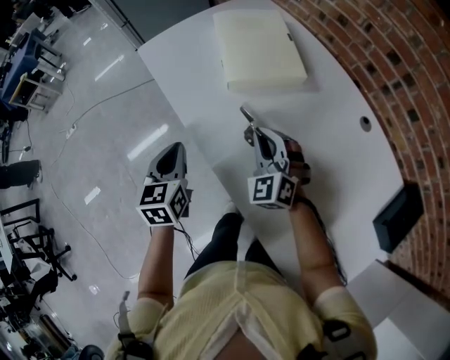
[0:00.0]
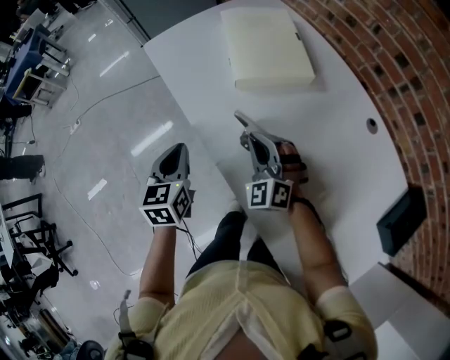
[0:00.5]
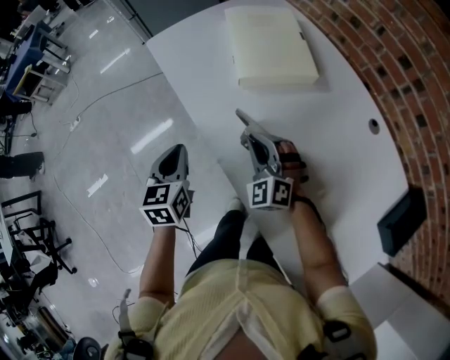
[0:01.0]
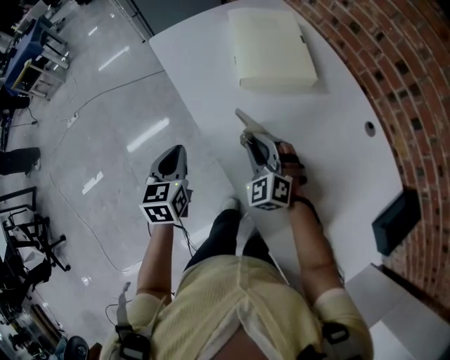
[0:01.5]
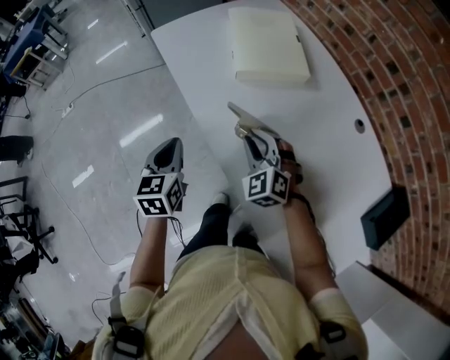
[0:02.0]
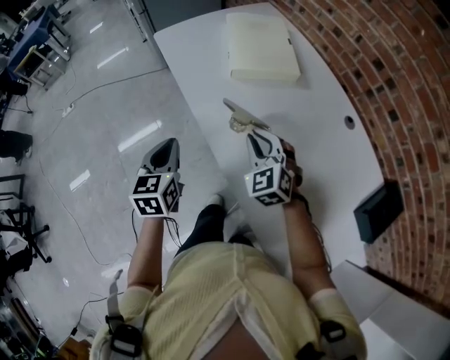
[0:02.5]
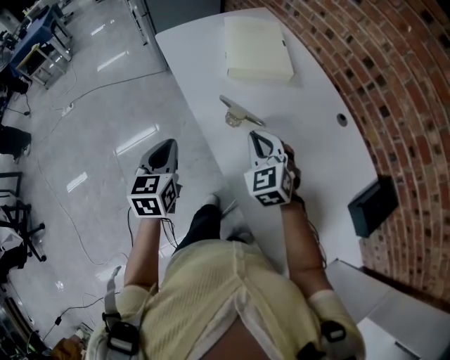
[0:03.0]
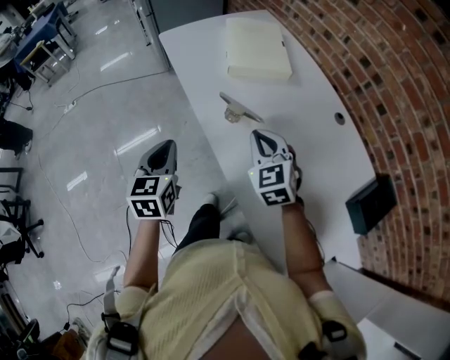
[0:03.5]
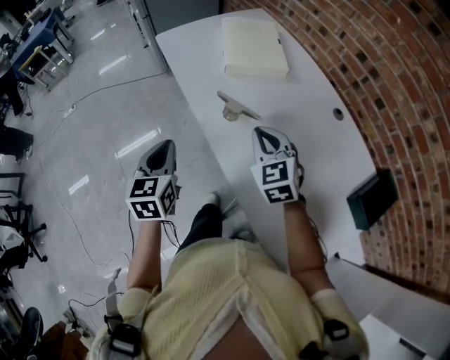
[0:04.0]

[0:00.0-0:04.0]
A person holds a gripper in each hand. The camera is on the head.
0:00.0 to 0:02.0: The right gripper heads backward, covering roughly 5 cm. The left gripper moves some 5 cm.
0:02.0 to 0:04.0: The right gripper heads upward, backward and to the right, covering approximately 15 cm, and turns by about 20 degrees; the left gripper heads backward and upward, covering roughly 15 cm.

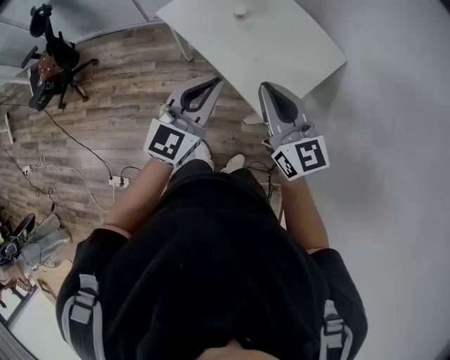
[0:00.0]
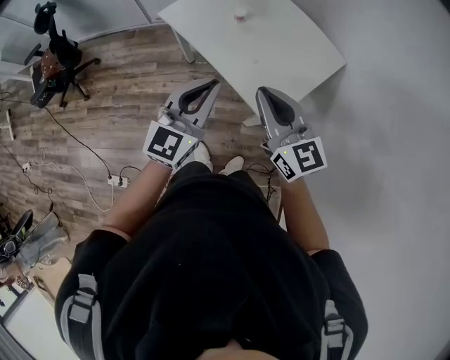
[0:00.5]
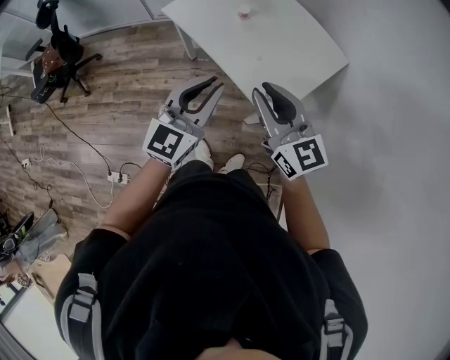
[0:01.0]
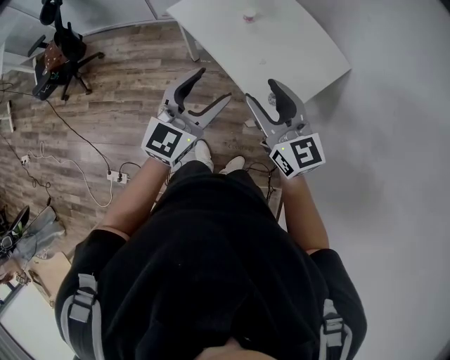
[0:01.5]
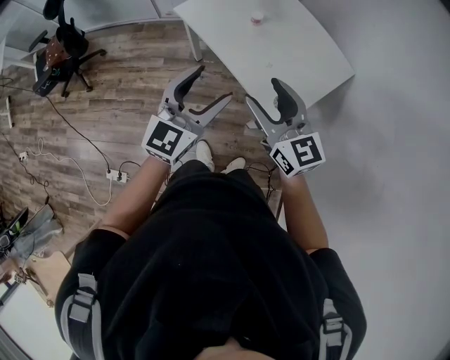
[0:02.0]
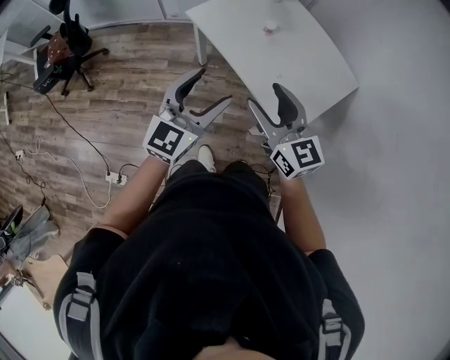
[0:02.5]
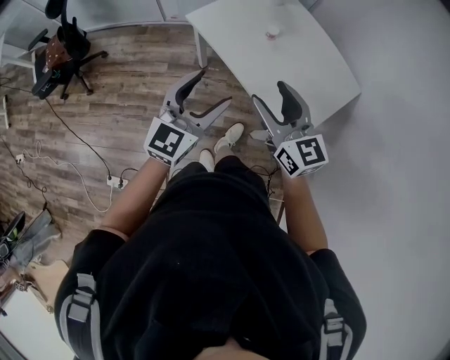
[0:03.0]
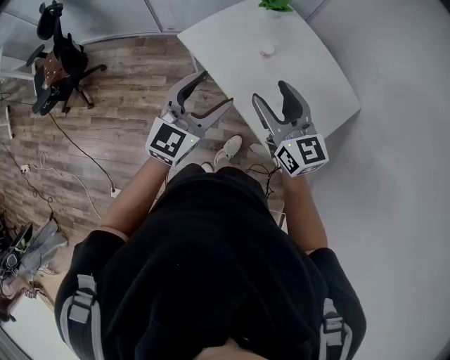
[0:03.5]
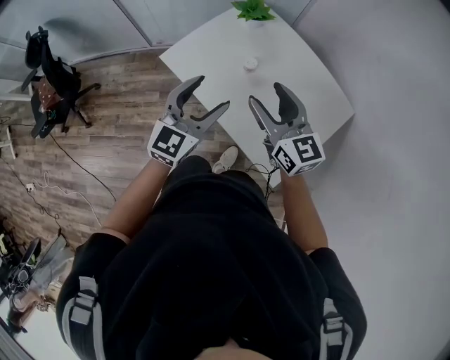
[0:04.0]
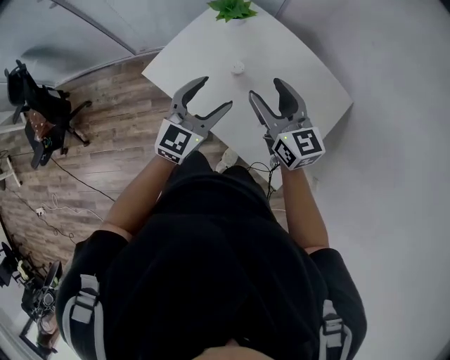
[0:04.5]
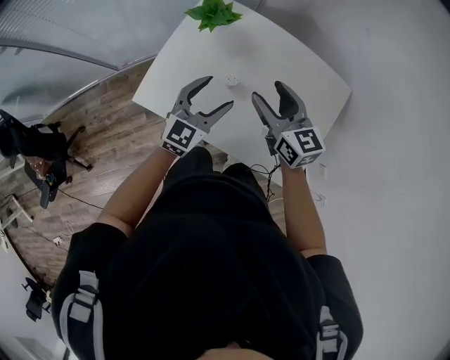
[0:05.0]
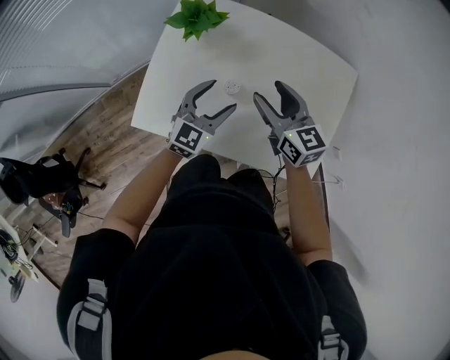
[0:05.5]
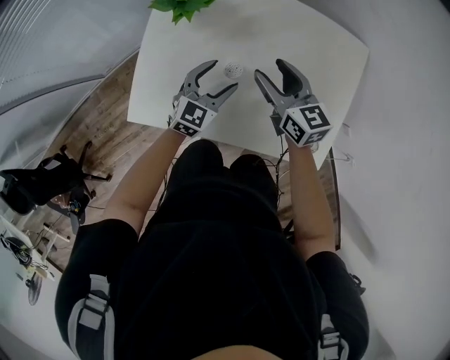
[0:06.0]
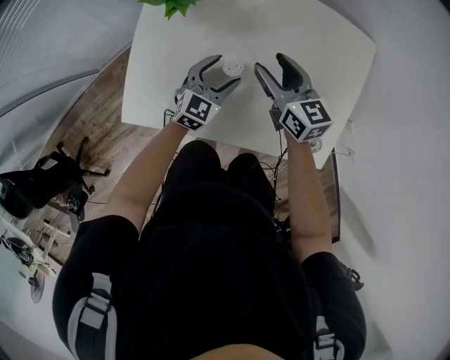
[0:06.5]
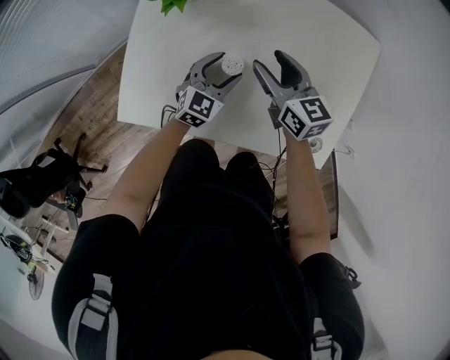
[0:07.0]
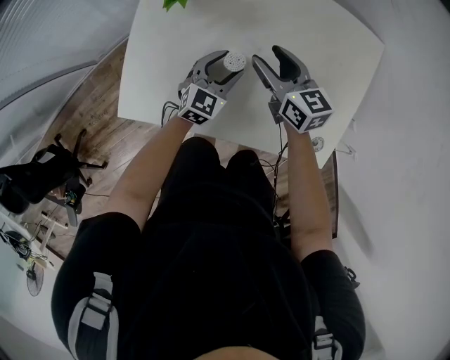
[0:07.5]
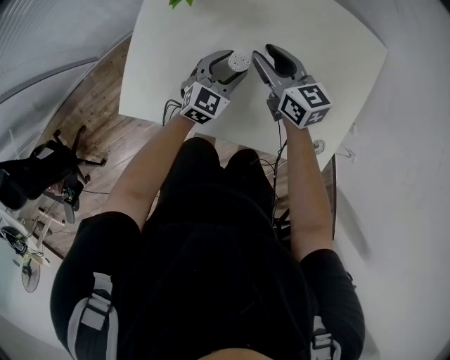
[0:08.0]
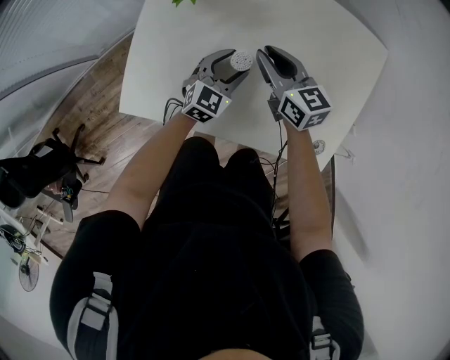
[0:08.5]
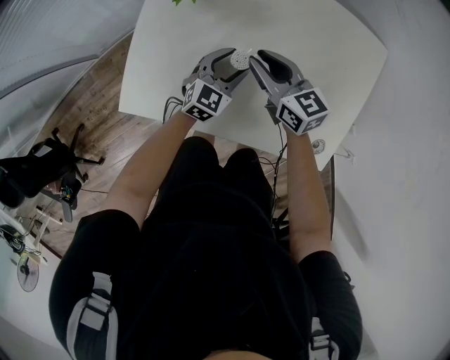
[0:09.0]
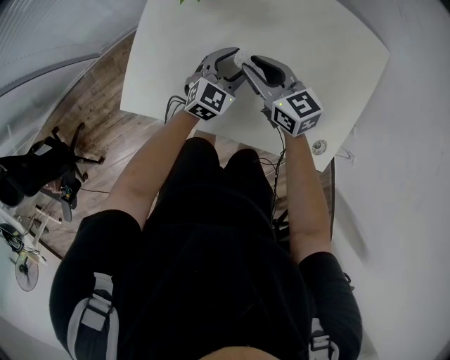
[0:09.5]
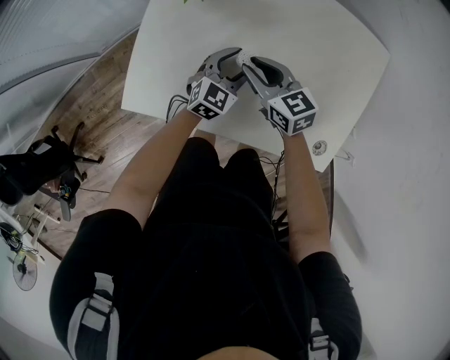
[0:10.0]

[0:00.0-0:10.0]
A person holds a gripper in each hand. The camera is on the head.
0:00.0 to 0:02.0: Both grippers travel together to the left, about 5 cm. The left gripper opens its fingers. The right gripper opens its fingers.
0:02.0 to 0:04.0: The grippers both shift forward by approximately 25 cm.
0:04.0 to 0:06.0: The left gripper goes roughly 25 cm downward, and turns by roughly 40 degrees, while the right gripper shifts by some 30 cm, and changes its angle by approximately 40 degrees.
0:06.0 to 0:08.0: The grippers both shift downward by roughly 10 cm. The right gripper closes its fingers.
0:08.0 to 0:10.0: The right gripper changes place by about 5 cm.

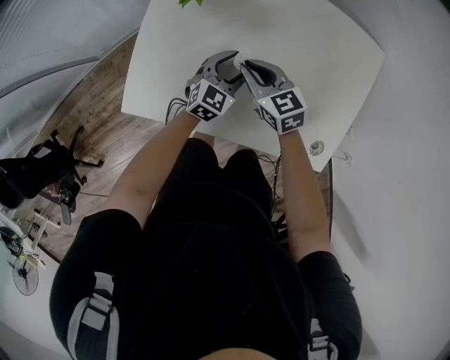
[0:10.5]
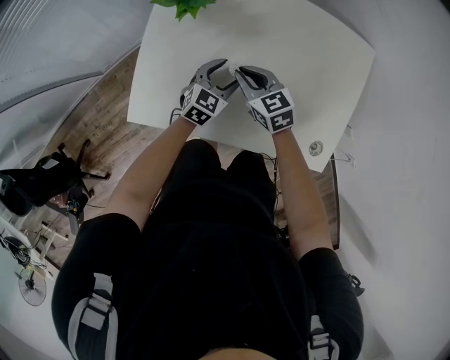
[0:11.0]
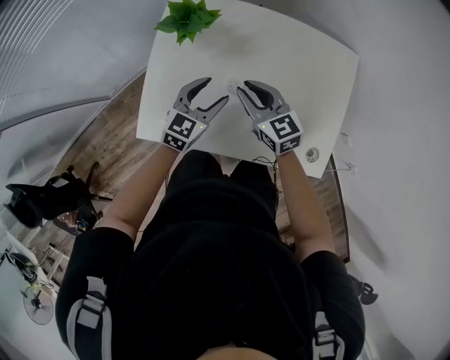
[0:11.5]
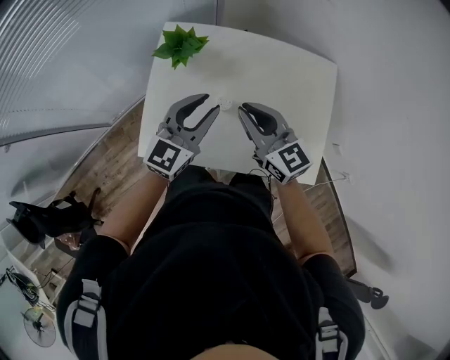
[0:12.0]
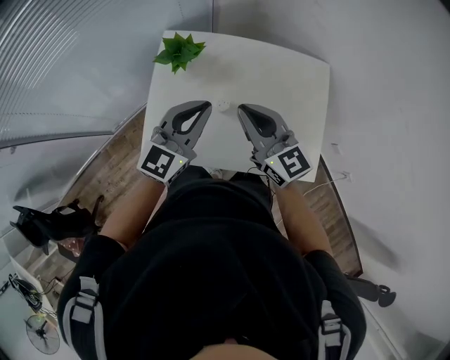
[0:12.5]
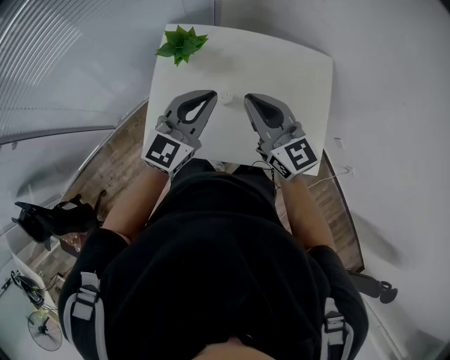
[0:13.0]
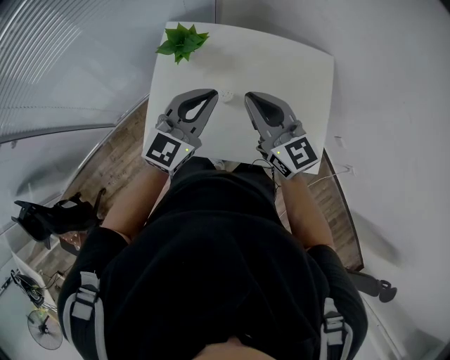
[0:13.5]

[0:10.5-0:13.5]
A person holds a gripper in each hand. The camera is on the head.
0:10.5 to 0:12.0: Both grippers travel together upward, about 25 cm. The right gripper changes its angle by roughly 30 degrees; the left gripper turns by approximately 20 degrees, and closes up.
0:12.0 to 0:13.5: The grippers both shift upward by roughly 5 cm. The left gripper closes its fingers.

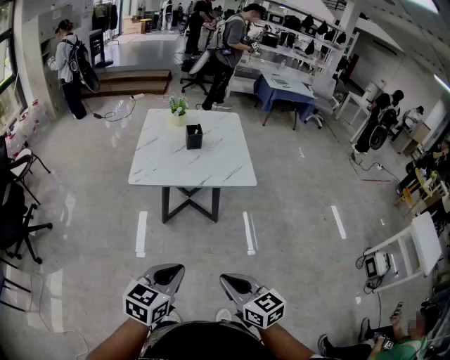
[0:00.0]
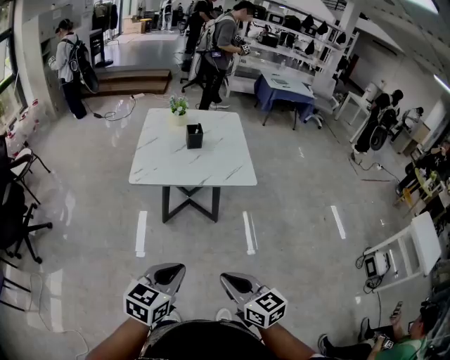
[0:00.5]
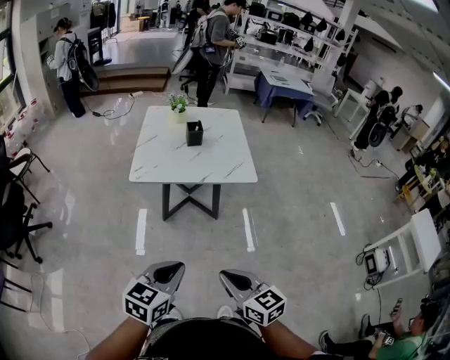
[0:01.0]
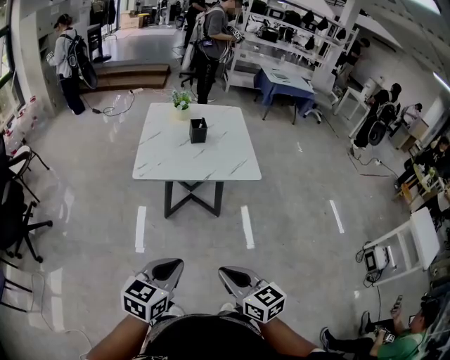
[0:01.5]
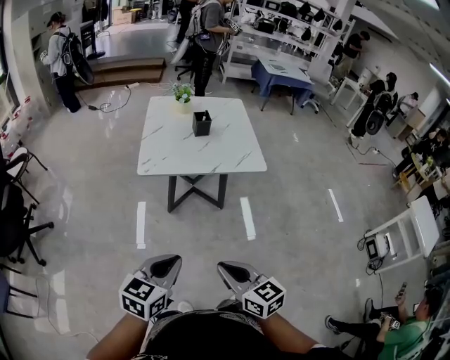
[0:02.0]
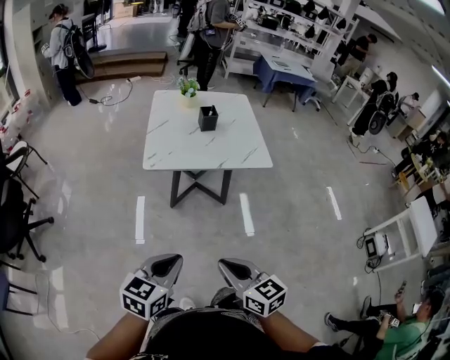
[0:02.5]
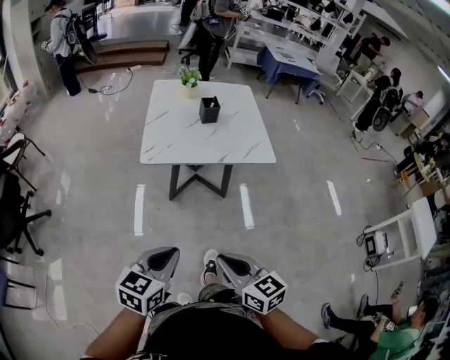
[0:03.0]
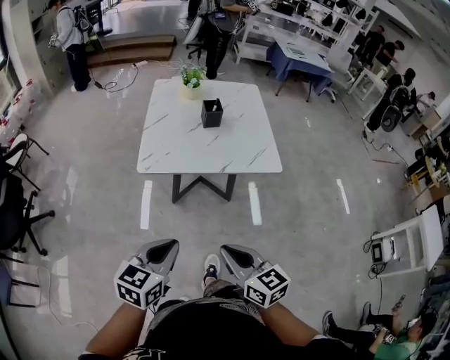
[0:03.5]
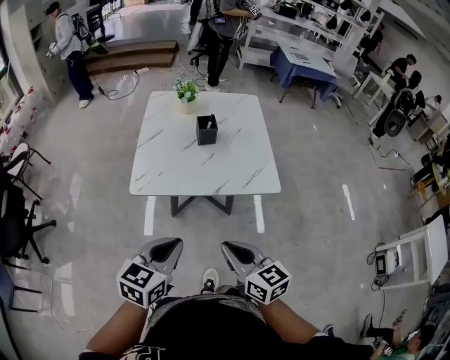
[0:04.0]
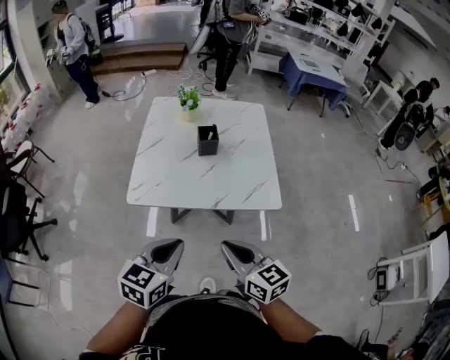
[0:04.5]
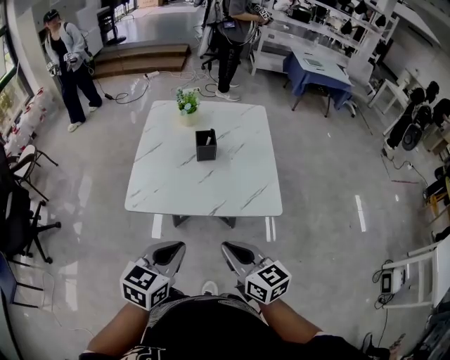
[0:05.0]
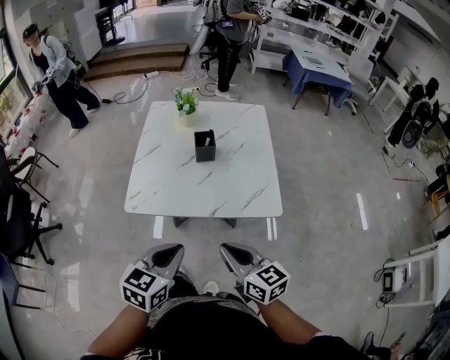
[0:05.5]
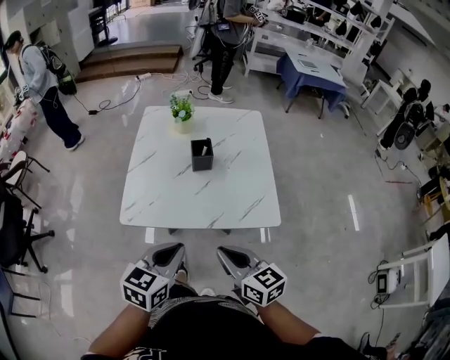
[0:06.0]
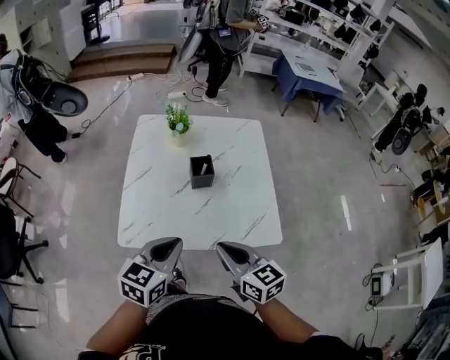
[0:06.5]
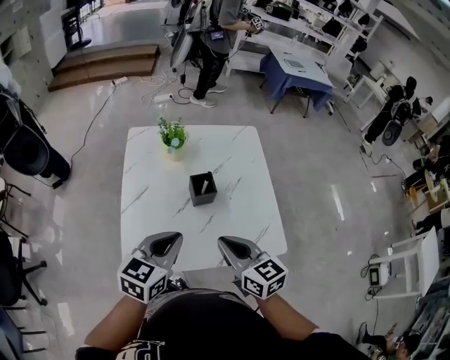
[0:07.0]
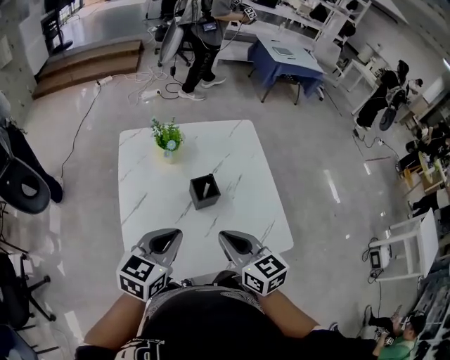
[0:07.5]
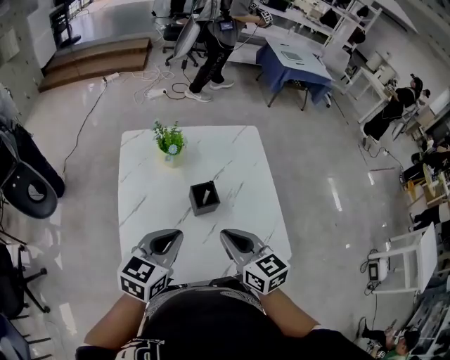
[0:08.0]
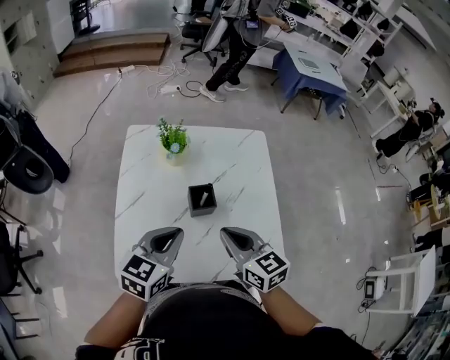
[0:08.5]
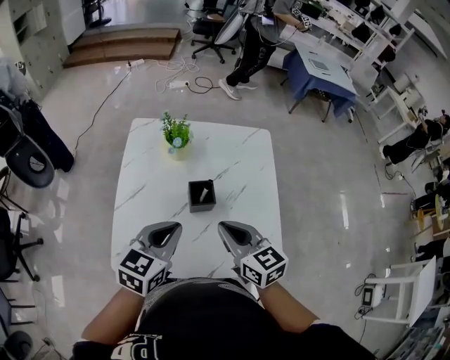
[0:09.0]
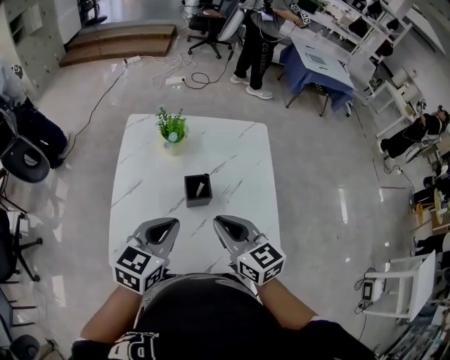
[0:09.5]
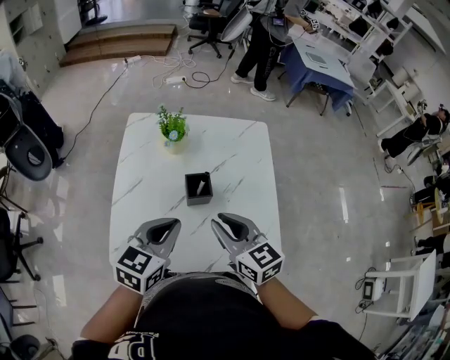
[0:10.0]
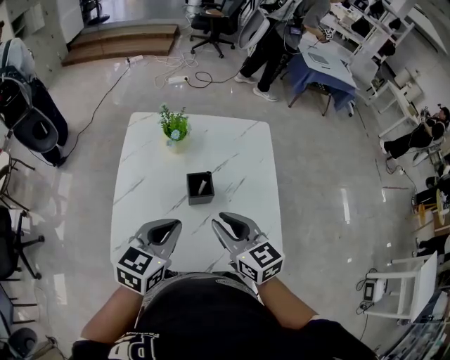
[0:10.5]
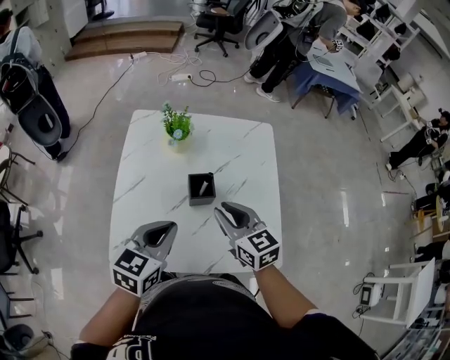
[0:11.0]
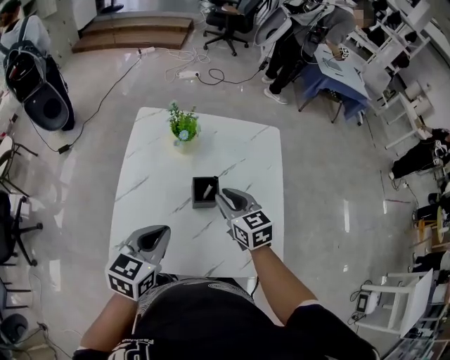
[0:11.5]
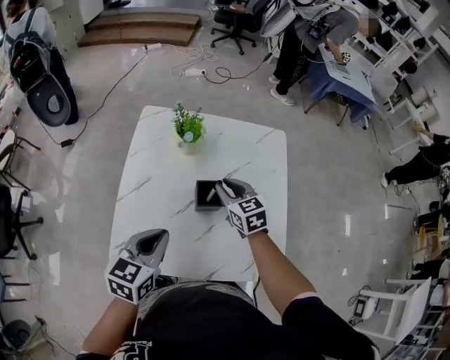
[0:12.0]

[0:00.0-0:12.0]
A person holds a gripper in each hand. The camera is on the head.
0:00.0 to 0:02.0: The two grippers go approximately 10 cm to the left.
0:02.0 to 0:04.0: Both grippers move forward, about 25 cm.
0:04.0 to 0:06.0: The two grippers go some 15 cm forward.
0:06.0 to 0:08.0: The two grippers go some 25 cm forward.
0:08.0 to 0:10.0: The grippers move only a little.
0:10.0 to 0:12.0: The left gripper travels to the left by roughly 5 cm, while the right gripper goes about 20 cm forward and downward.
